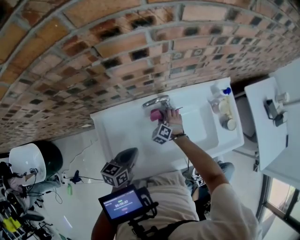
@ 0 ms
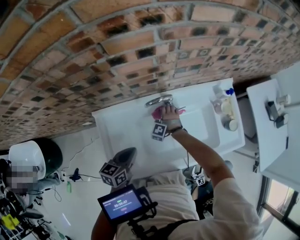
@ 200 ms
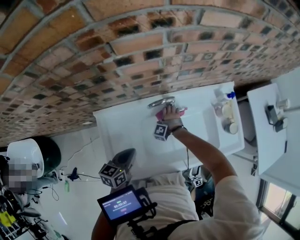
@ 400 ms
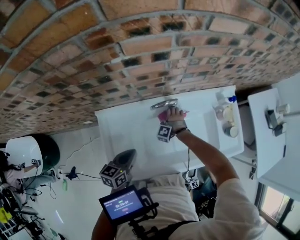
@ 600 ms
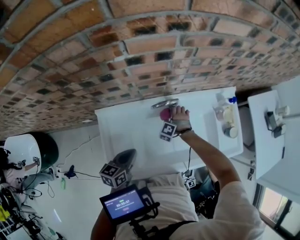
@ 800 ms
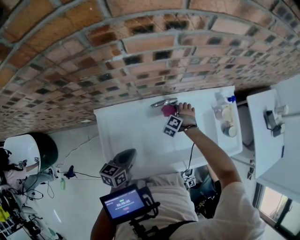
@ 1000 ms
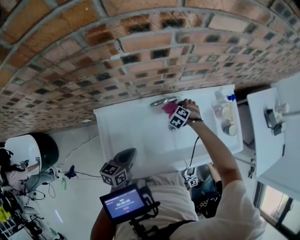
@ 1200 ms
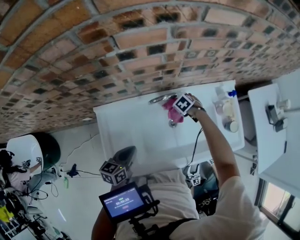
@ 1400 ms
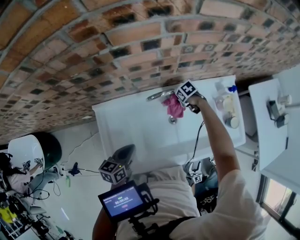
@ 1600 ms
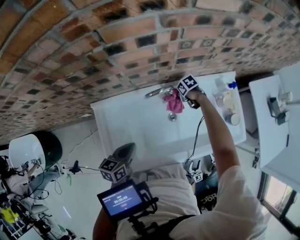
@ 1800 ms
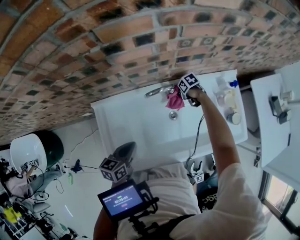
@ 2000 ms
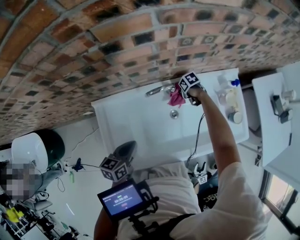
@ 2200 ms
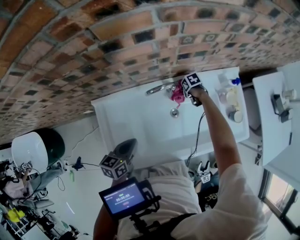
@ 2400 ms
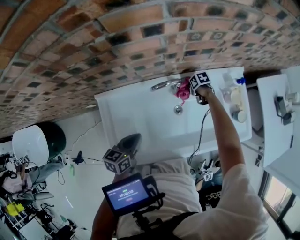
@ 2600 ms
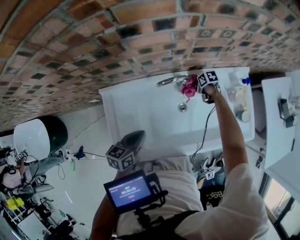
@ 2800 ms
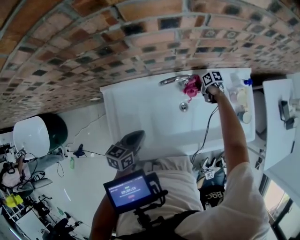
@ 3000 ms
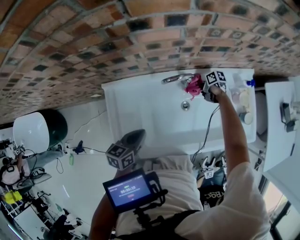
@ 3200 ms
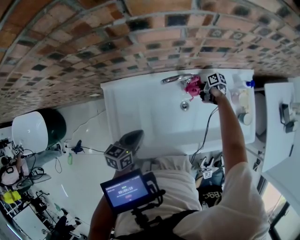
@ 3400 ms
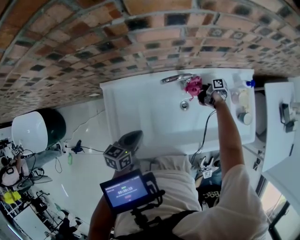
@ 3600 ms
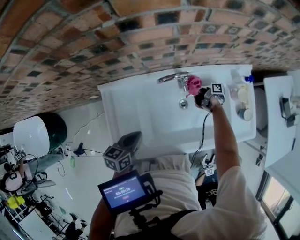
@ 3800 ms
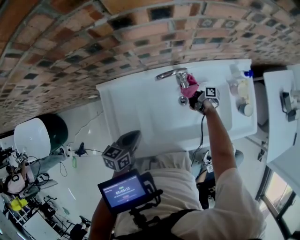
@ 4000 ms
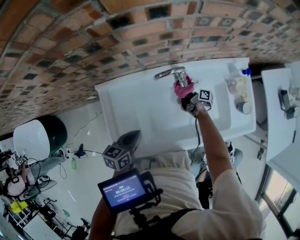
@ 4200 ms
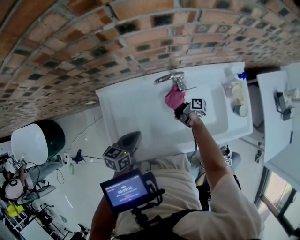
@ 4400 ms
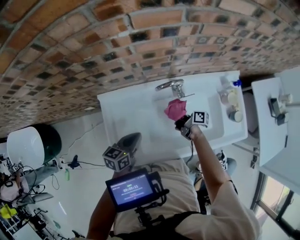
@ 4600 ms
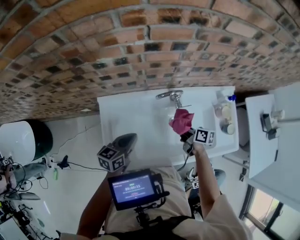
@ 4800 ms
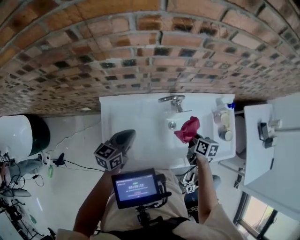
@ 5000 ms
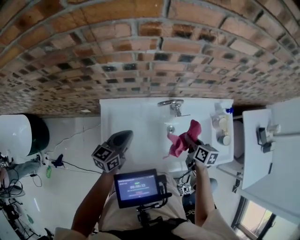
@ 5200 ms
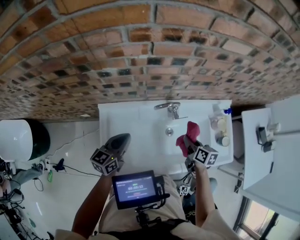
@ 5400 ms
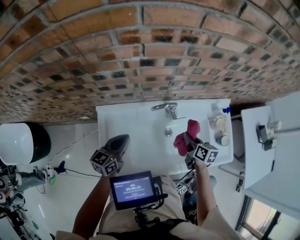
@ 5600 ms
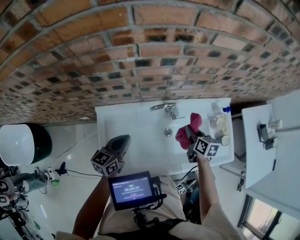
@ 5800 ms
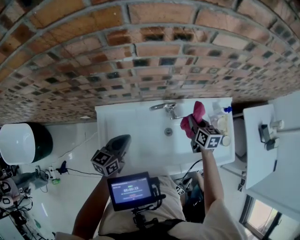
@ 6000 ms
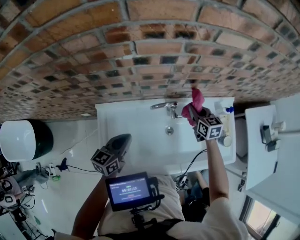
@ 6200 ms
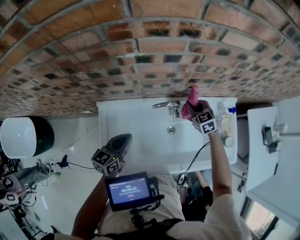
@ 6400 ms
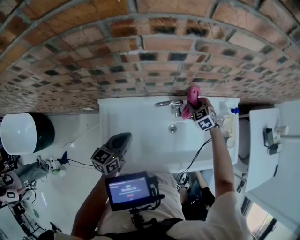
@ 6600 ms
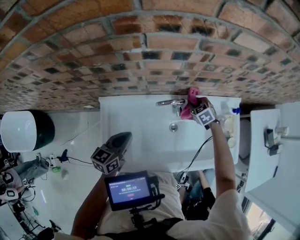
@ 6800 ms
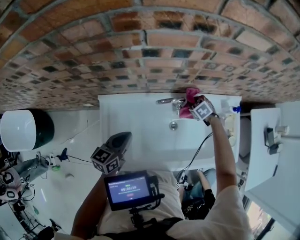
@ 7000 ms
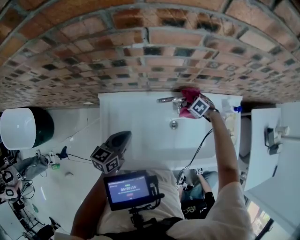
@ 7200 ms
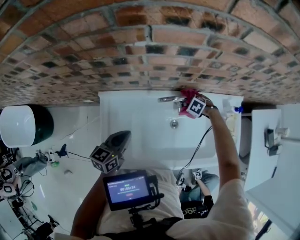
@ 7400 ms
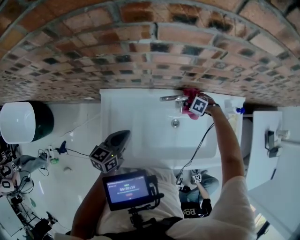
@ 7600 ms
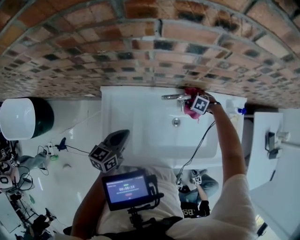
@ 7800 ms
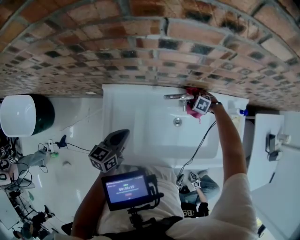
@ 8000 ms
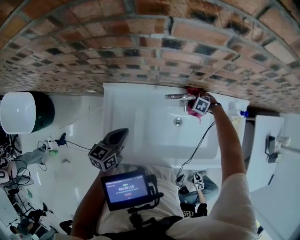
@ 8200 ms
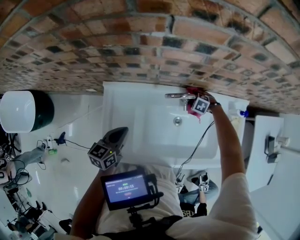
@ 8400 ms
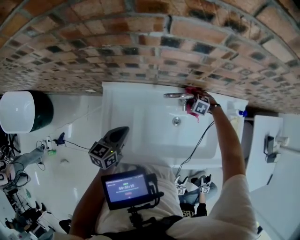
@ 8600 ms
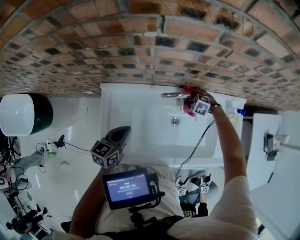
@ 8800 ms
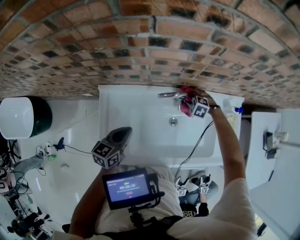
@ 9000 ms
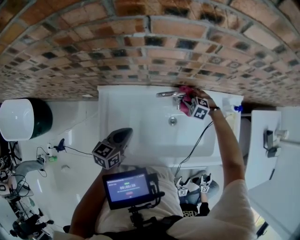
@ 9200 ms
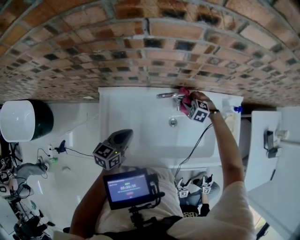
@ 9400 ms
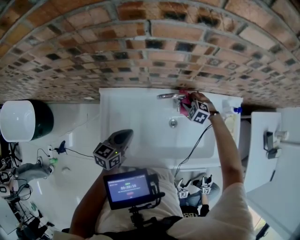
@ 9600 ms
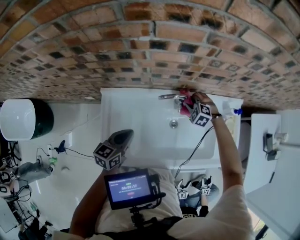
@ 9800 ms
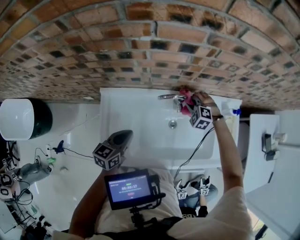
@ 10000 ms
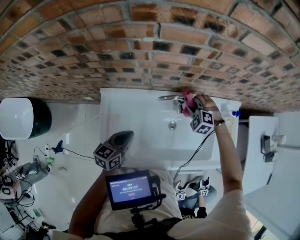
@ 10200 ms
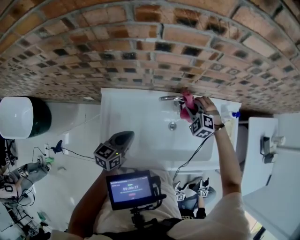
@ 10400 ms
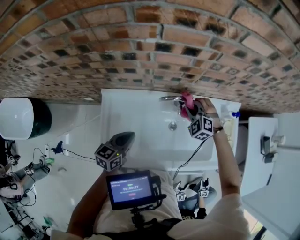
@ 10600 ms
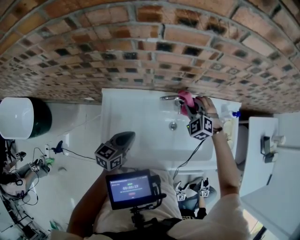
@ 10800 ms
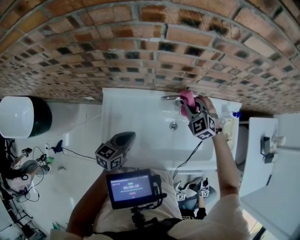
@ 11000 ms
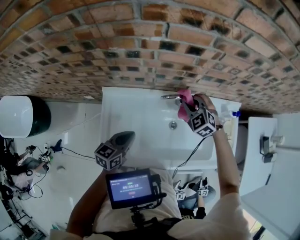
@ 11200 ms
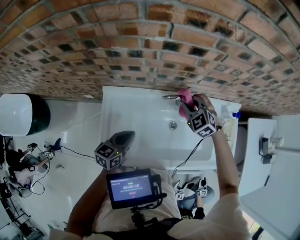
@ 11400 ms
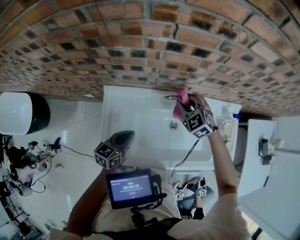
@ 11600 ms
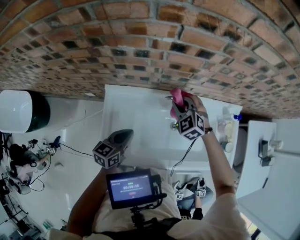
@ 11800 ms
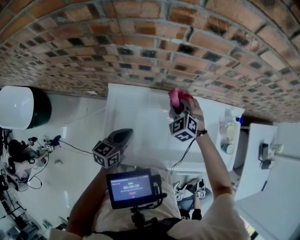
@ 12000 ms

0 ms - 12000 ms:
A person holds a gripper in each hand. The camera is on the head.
0 ms - 1600 ms: The right gripper moves up and down over about 5 cm, changing direction 2 times, and rotates approximately 60 degrees.
1600 ms - 3000 ms: The right gripper moves downward, some 5 cm, and changes its angle by about 30 degrees.
3000 ms - 4400 ms: The right gripper changes place by some 15 cm, and points its fingers about 40 degrees further upward.
4400 ms - 6000 ms: The left gripper shifts approximately 10 cm upward and forward. The right gripper travels upward and to the right by approximately 25 cm, and rolls counterclockwise, seen from behind, by roughly 50 degrees.
6000 ms - 7600 ms: The left gripper changes place by approximately 5 cm, while the right gripper moves downward, about 20 cm, and tips its fingers downward by some 50 degrees.
7600 ms - 9000 ms: The grippers move only a little.
9000 ms - 10400 ms: The right gripper is displaced upward by approximately 15 cm, and turns by roughly 20 degrees.
10400 ms - 12000 ms: The right gripper heads to the left, covering some 15 cm.

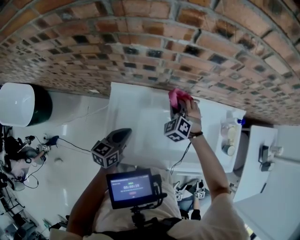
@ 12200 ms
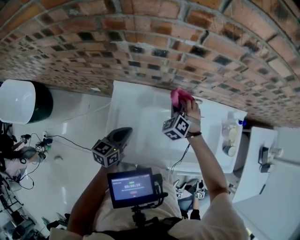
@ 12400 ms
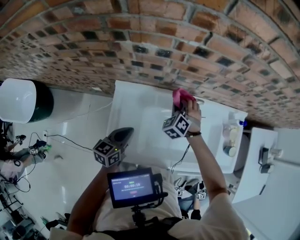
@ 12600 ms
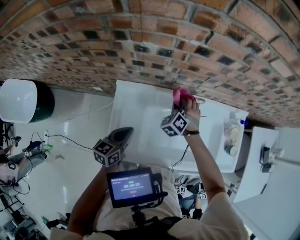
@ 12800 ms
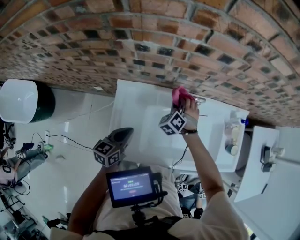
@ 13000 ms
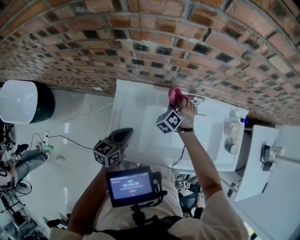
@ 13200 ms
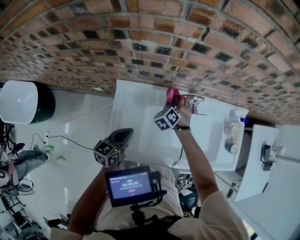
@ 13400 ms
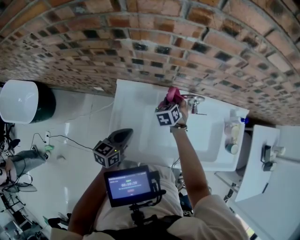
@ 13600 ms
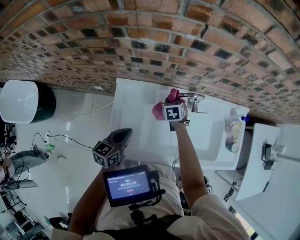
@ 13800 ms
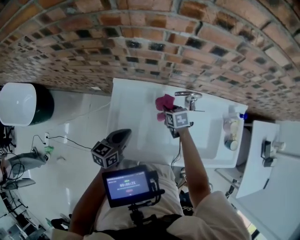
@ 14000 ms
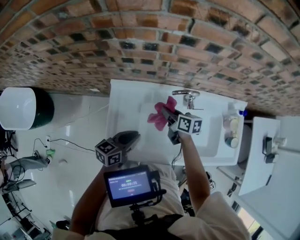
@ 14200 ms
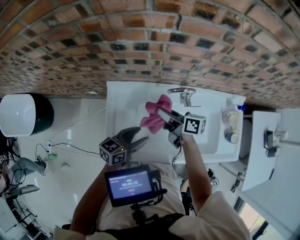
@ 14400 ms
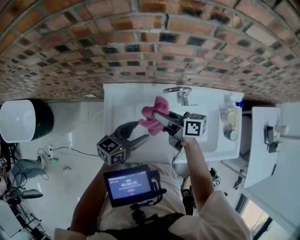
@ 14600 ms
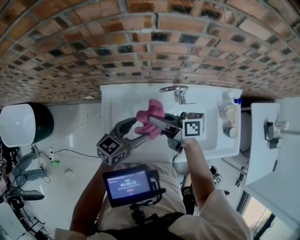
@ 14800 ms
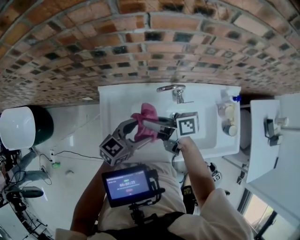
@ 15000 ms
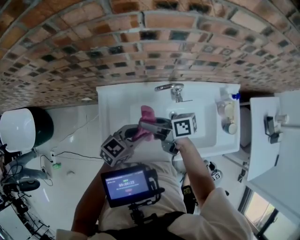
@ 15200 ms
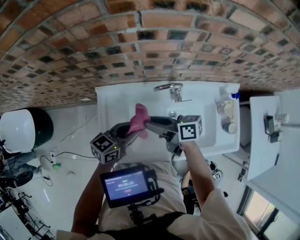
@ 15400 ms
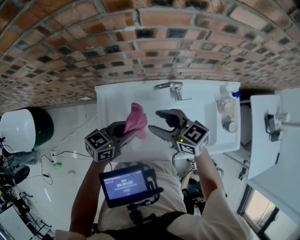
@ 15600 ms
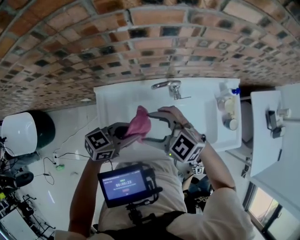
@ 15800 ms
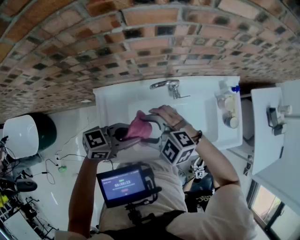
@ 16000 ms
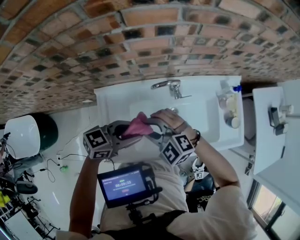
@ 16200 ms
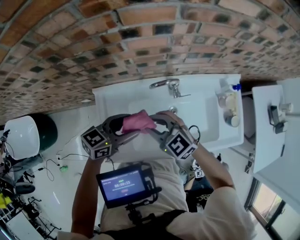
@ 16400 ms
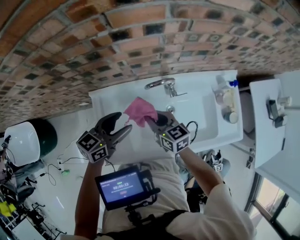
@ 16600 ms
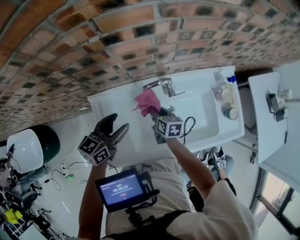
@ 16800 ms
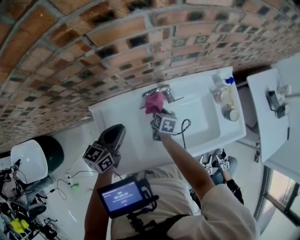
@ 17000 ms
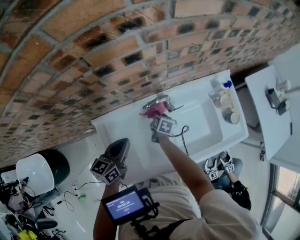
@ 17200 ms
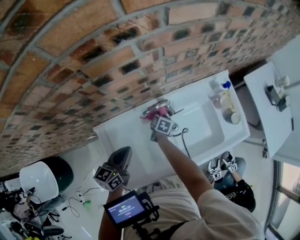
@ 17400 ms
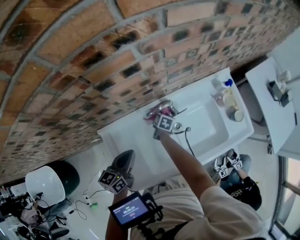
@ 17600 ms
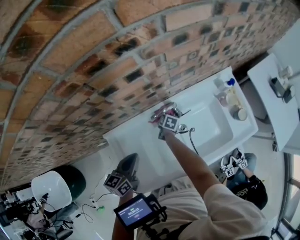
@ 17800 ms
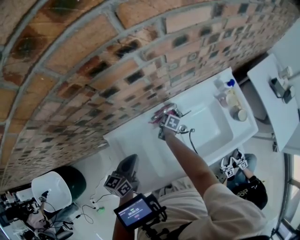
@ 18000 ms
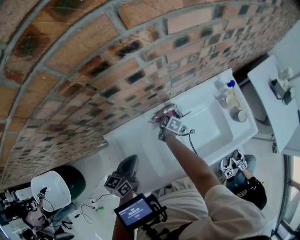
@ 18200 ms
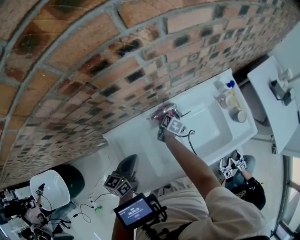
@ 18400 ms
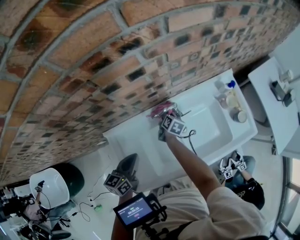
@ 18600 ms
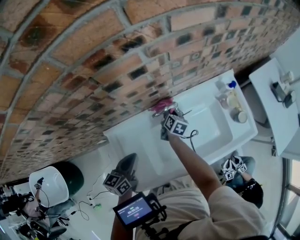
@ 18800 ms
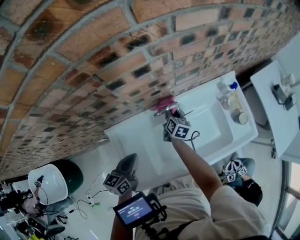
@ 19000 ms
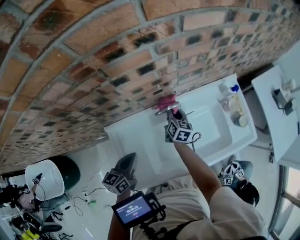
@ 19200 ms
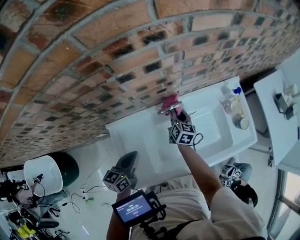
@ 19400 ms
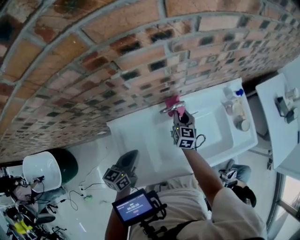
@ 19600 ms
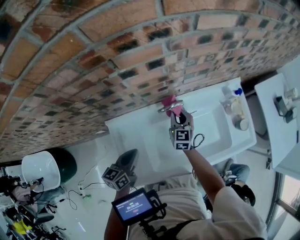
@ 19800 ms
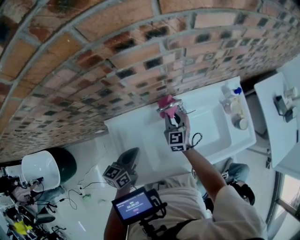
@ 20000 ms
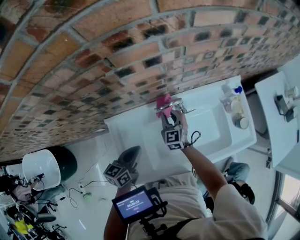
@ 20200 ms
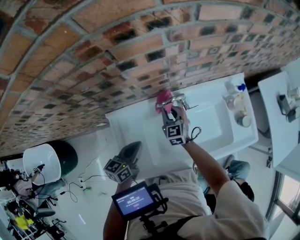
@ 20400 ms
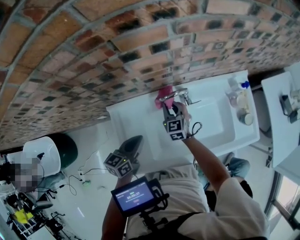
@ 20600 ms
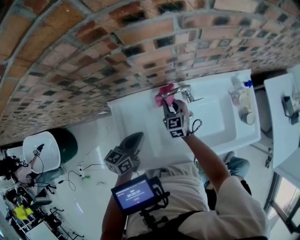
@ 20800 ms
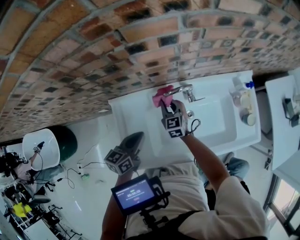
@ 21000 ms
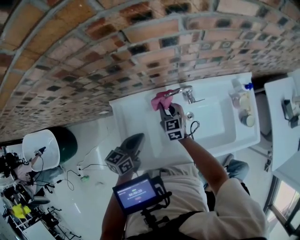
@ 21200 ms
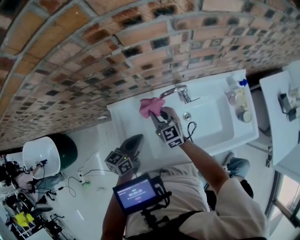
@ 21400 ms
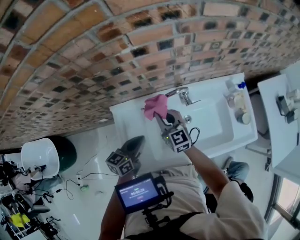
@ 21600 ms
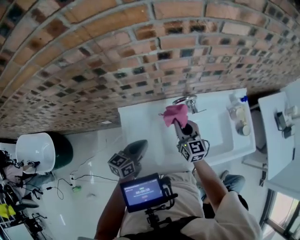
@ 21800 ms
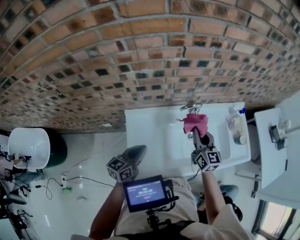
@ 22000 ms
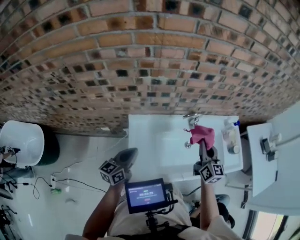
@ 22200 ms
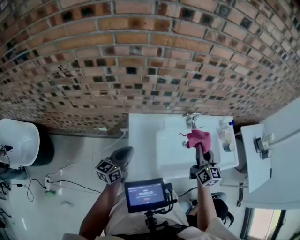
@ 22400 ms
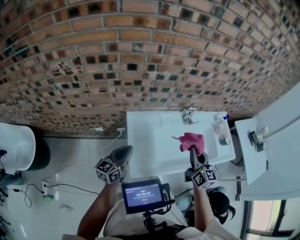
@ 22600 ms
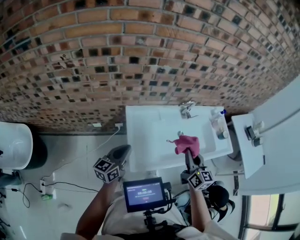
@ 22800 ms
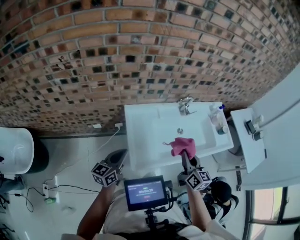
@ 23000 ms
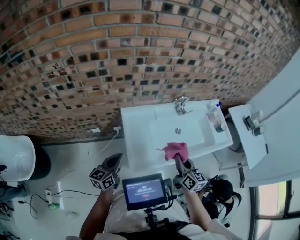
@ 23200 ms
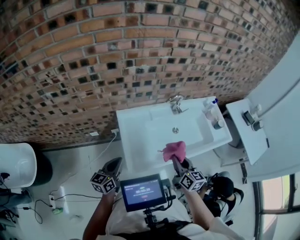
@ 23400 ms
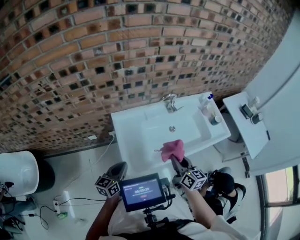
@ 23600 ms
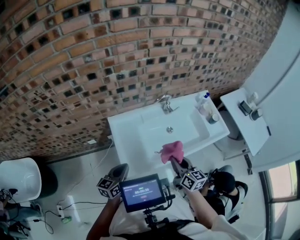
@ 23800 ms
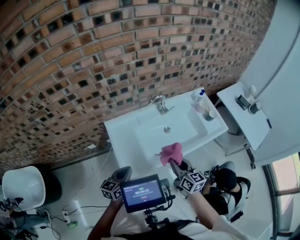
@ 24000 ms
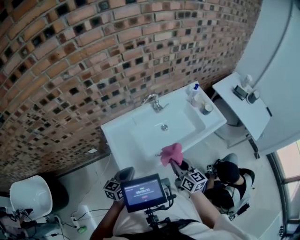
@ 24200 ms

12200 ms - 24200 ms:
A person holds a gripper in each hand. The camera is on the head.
12200 ms - 13800 ms: The right gripper moves downward, about 10 cm, and twists some 50 degrees clockwise, seen from behind.
13800 ms - 15200 ms: The right gripper shifts roughly 20 cm upward, and points its fingers roughly 50 degrees further upward; the left gripper changes place by about 15 cm, turns by approximately 30 degrees, and opens and closes again.
15200 ms - 16600 ms: The right gripper heads downward, covering some 5 cm, rotates approximately 50 degrees, and opens and closes again. The left gripper moves approximately 5 cm, and opens its fingers.
16600 ms - 18200 ms: The right gripper shifts roughly 30 cm downward and forward, and turns by approximately 70 degrees. The left gripper ends up approximately 5 cm from where it was, and closes up.
18200 ms - 19800 ms: The right gripper goes roughly 20 cm upward, and rolls counterclockwise, seen from behind, by about 50 degrees.
19800 ms - 21200 ms: The right gripper heads to the left and backward, covering about 10 cm, and swivels about 20 degrees.
21200 ms - 22600 ms: The right gripper heads backward and upward, covering approximately 35 cm, and changes its angle by about 20 degrees. The left gripper travels to the left, backward and upward by some 25 cm, and changes its angle by roughly 20 degrees.
22600 ms - 24200 ms: The right gripper heads backward, to the right and downward, covering approximately 15 cm. The left gripper shifts roughly 15 cm to the right and backward, and swivels approximately 20 degrees.
